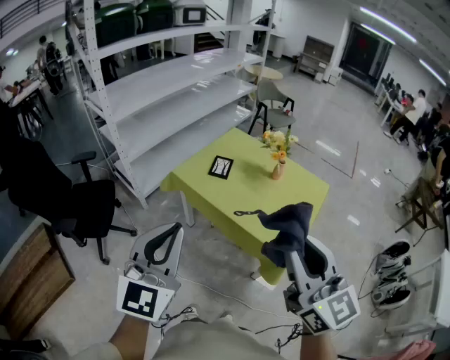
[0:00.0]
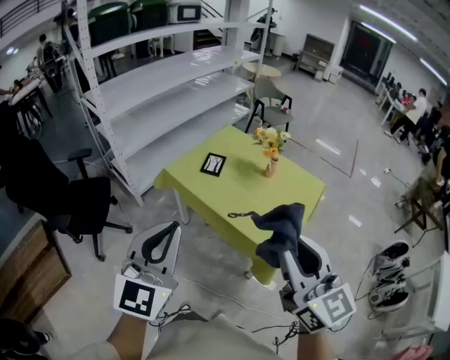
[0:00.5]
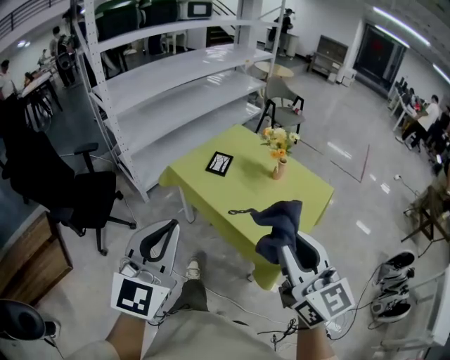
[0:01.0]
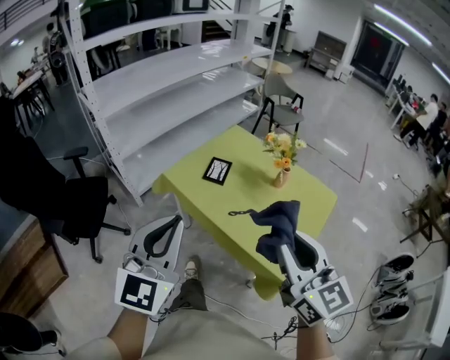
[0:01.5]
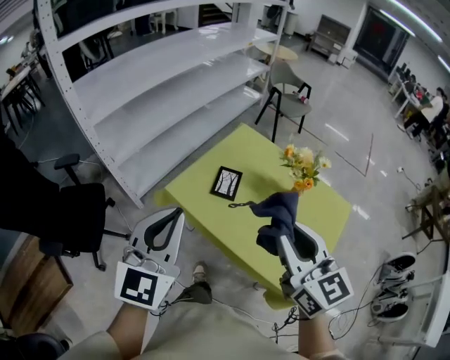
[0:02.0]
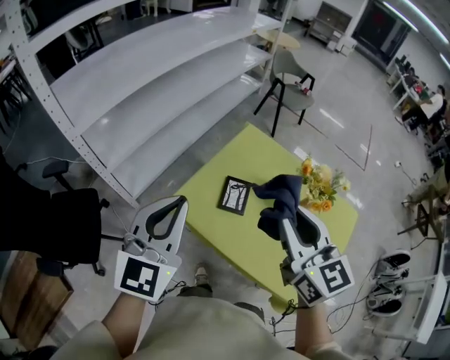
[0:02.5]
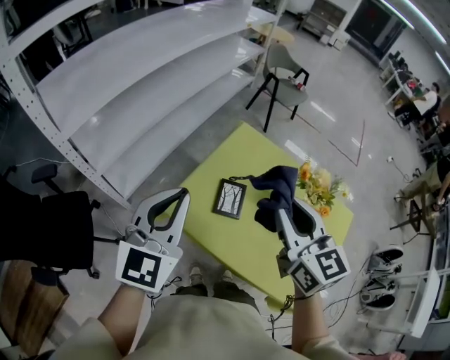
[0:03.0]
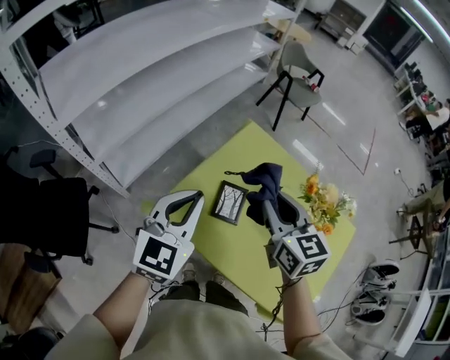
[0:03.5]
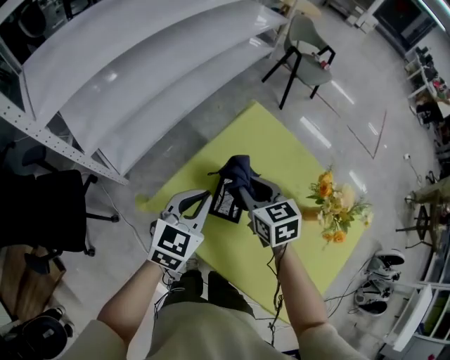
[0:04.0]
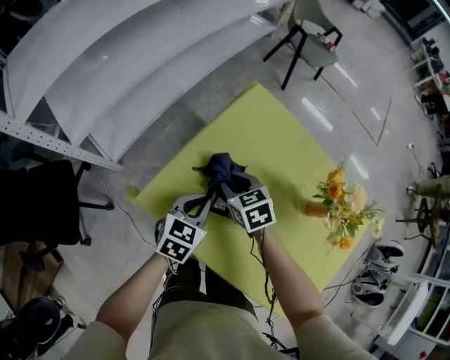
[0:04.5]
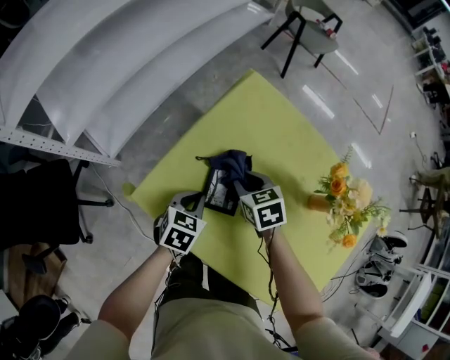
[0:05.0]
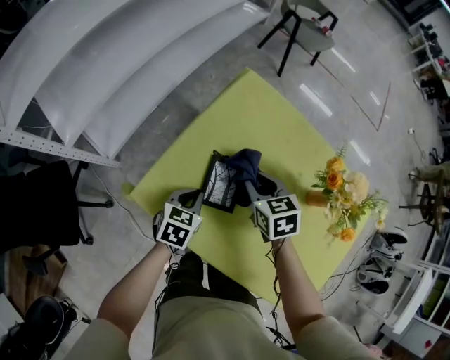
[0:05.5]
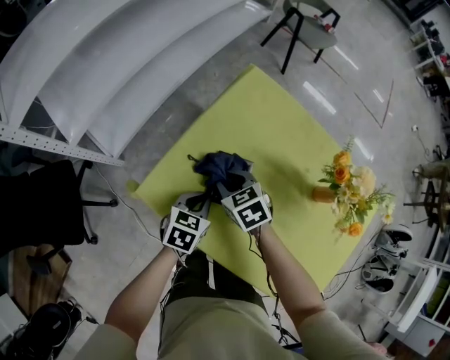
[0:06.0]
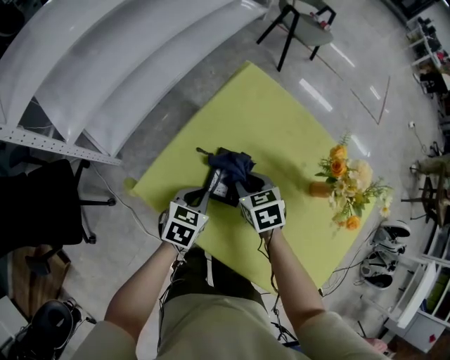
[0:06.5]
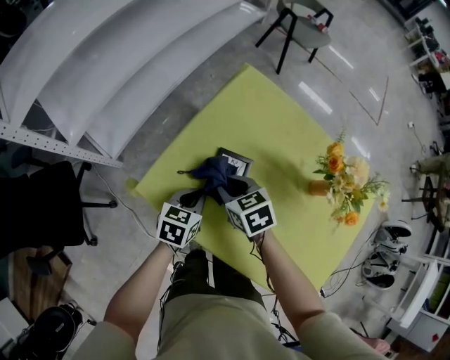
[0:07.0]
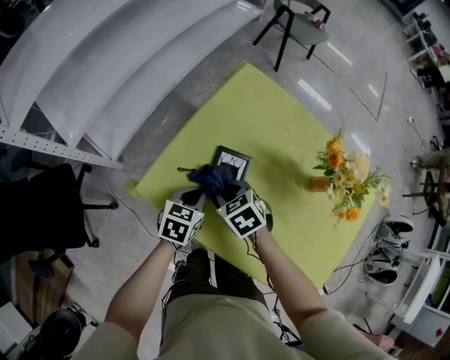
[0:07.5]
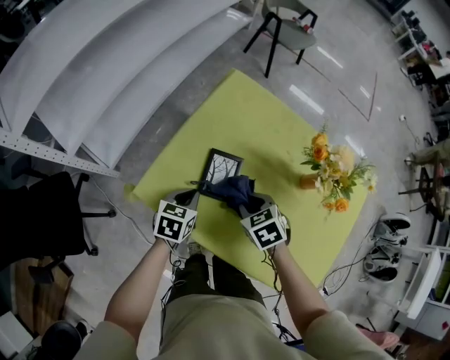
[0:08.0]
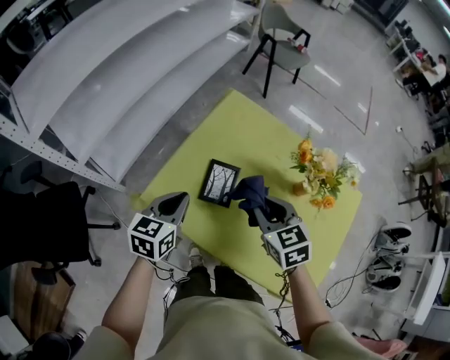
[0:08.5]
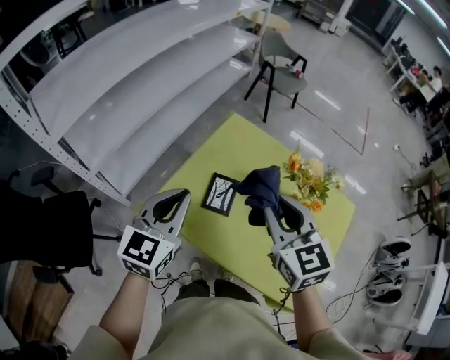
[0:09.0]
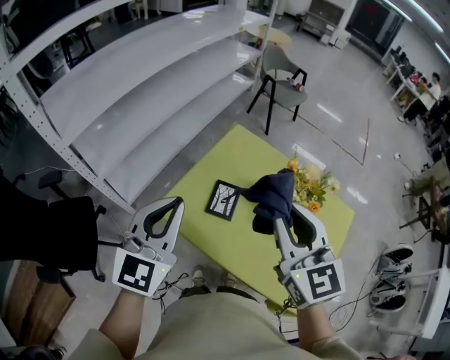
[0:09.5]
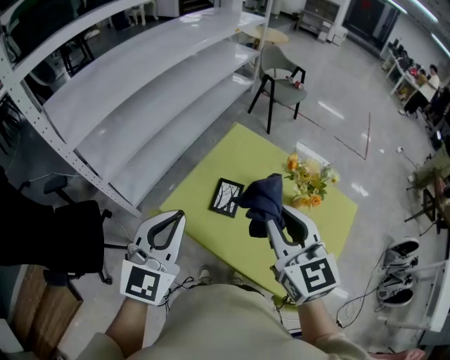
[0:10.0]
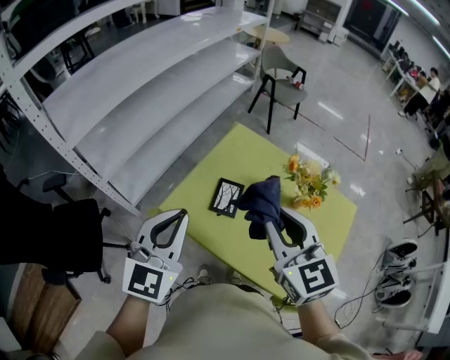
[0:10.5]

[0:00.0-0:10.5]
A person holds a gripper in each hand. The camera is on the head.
0:00.0 to 0:02.0: The grippers both shift forward by some 30 cm.
0:02.0 to 0:04.0: Both grippers travel together forward and downward, roughly 40 cm. The left gripper changes its angle by some 30 degrees. The right gripper tips its fingers downward by roughly 30 degrees.
0:04.0 to 0:06.5: The left gripper is displaced downward by some 20 cm, and swivels some 30 degrees. The right gripper moves up and down over some 15 cm, changing direction 2 times.
0:06.5 to 0:08.5: The right gripper goes approximately 20 cm upward and backward, while the left gripper is displaced upward by about 15 cm.
0:08.5 to 0:10.5: Both grippers travel together upward and backward, approximately 25 cm. The right gripper rotates roughly 30 degrees; the left gripper turns by some 40 degrees.

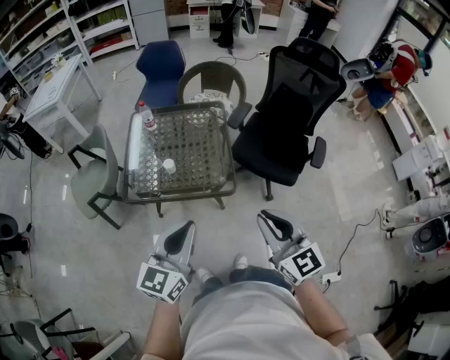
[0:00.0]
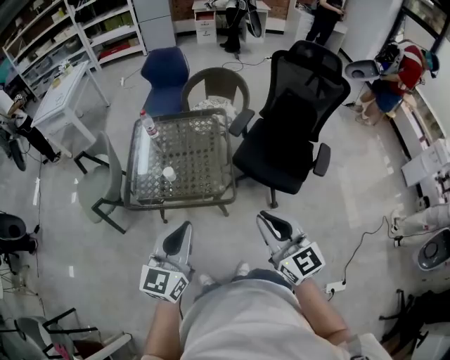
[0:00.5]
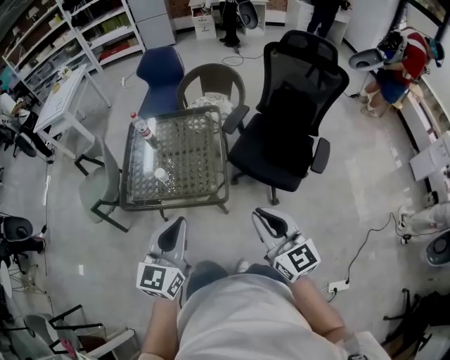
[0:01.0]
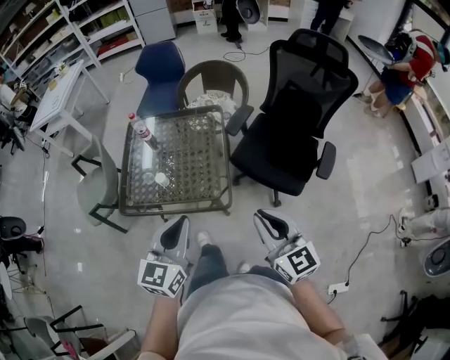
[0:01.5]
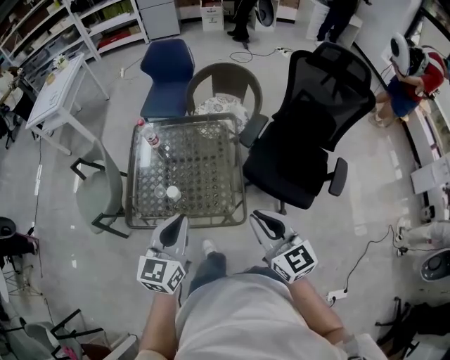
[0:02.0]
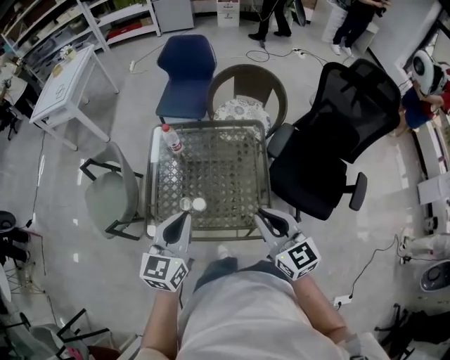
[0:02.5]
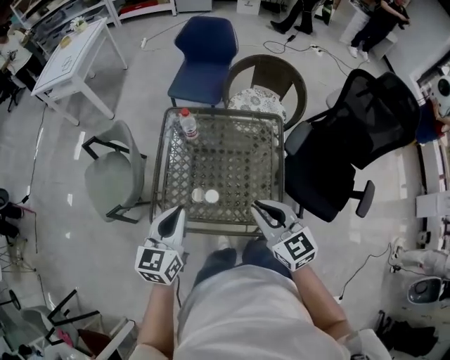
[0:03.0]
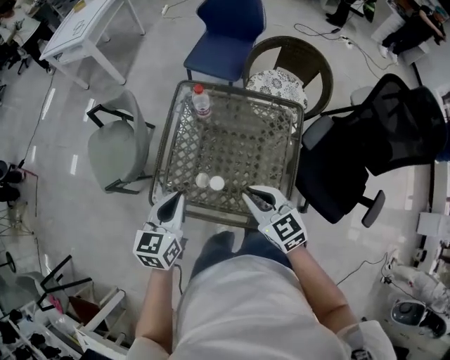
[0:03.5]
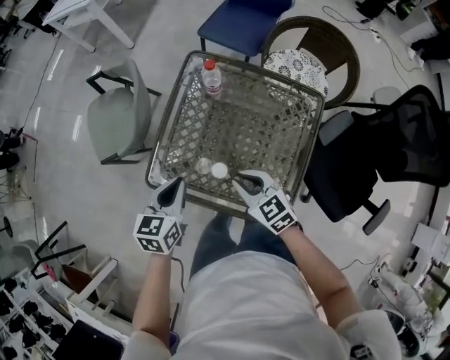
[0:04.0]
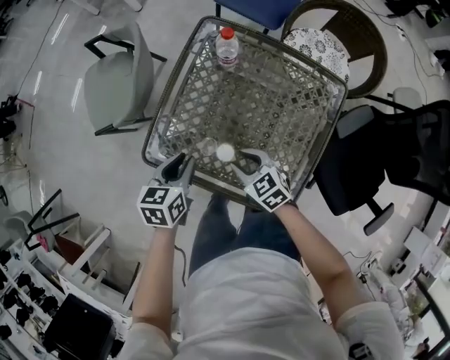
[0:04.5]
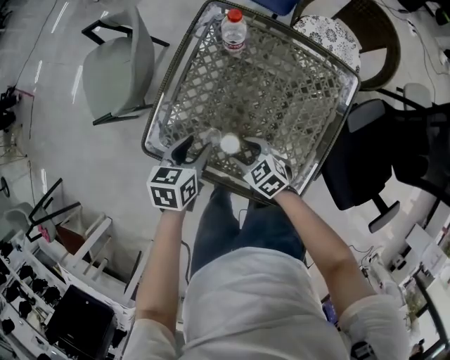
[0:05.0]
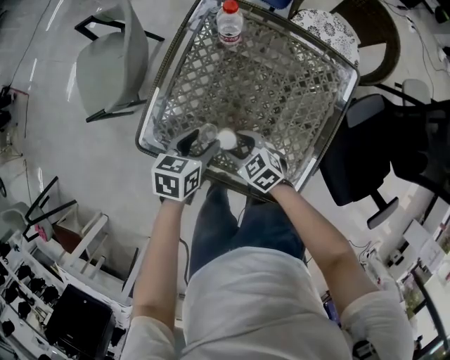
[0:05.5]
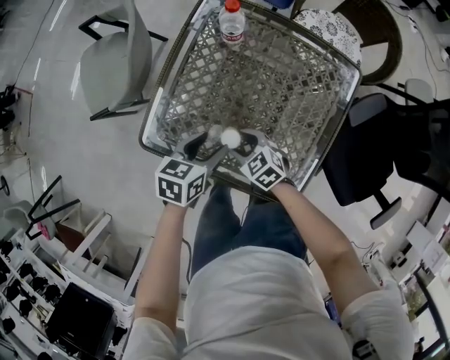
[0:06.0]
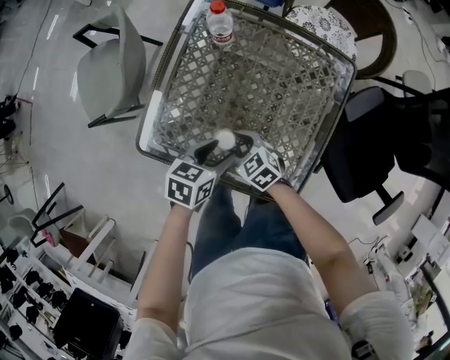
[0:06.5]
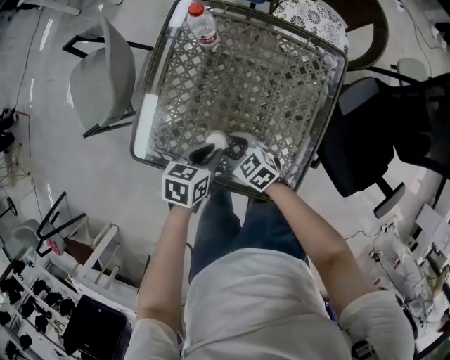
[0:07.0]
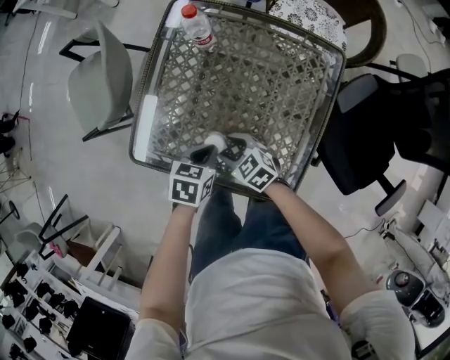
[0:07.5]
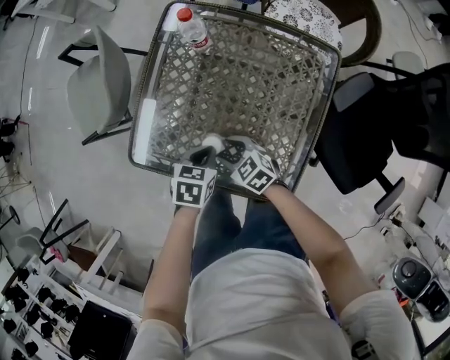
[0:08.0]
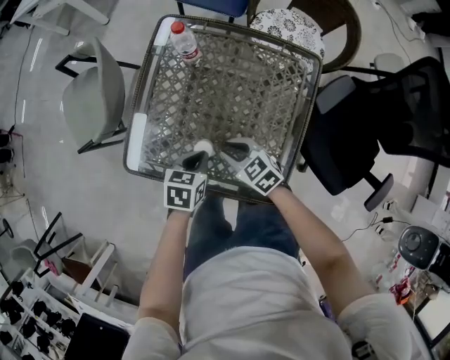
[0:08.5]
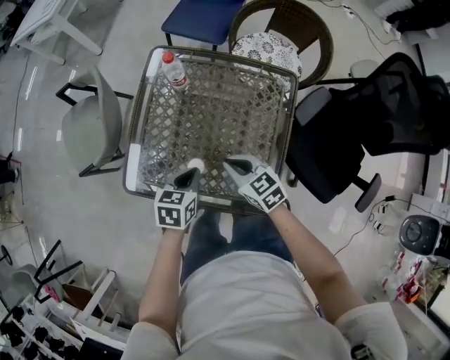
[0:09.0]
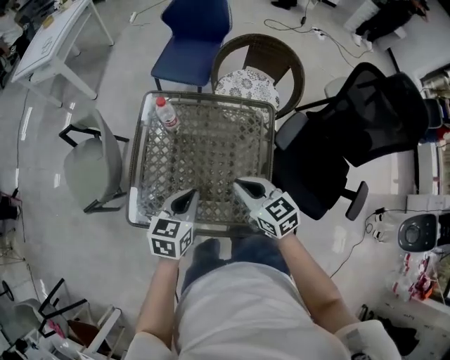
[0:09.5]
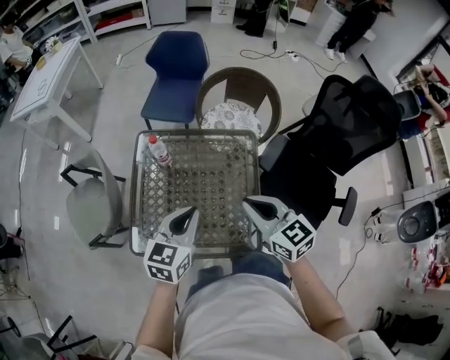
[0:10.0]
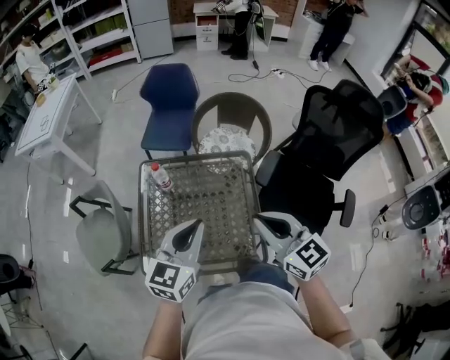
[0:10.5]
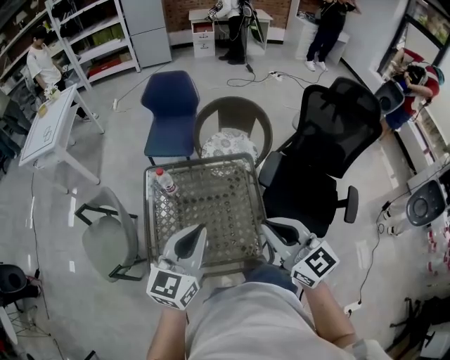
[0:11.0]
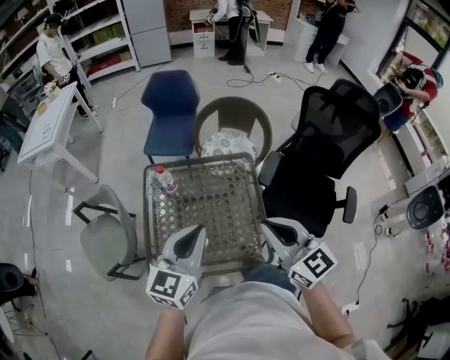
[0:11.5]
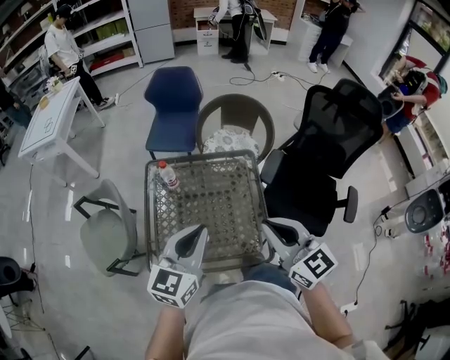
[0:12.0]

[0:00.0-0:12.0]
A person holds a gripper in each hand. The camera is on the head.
0:00.0 to 0:02.0: The two grippers go roughly 20 cm forward.
0:02.0 to 0:04.0: The left gripper changes place by about 30 cm, and swivels roughly 30 degrees. The right gripper ends up approximately 40 cm from where it was, and changes its angle by about 50 degrees.
0:04.0 to 0:06.0: The left gripper goes roughly 15 cm downward and to the right, and opens. The right gripper travels downward by about 20 cm, and opens.
0:06.0 to 0:08.0: The left gripper shifts by approximately 5 cm, and closes up.
0:08.0 to 0:10.0: The right gripper goes approximately 40 cm upward and to the right, rotates about 50 degrees, and closes. The left gripper goes about 30 cm upward, and tips its fingers upward by roughly 40 degrees.
0:10.0 to 0:12.0: The two grippers go some 15 cm upward and backward.

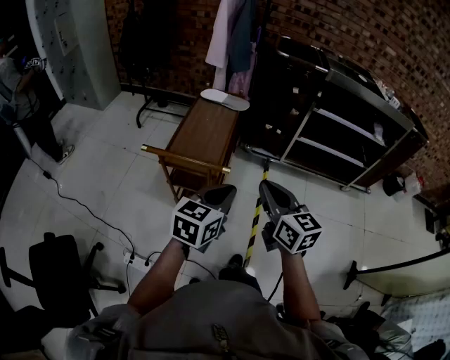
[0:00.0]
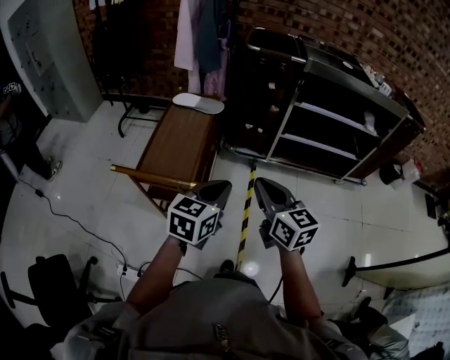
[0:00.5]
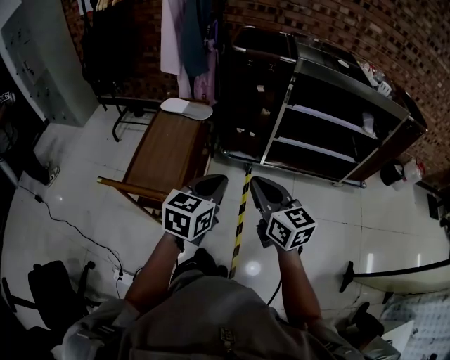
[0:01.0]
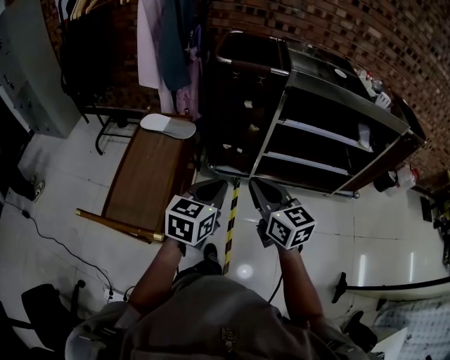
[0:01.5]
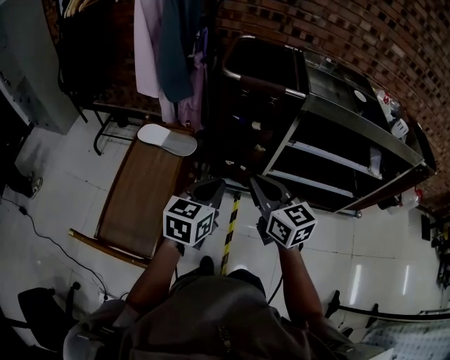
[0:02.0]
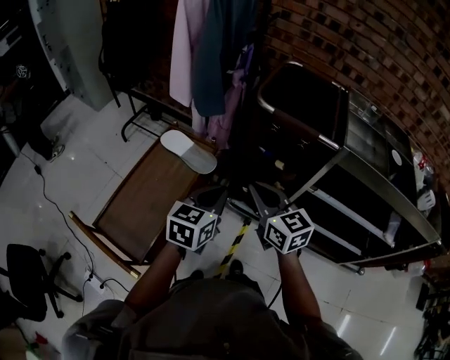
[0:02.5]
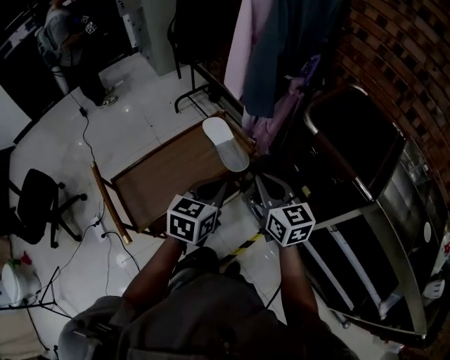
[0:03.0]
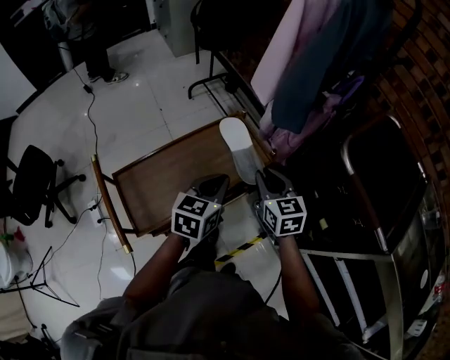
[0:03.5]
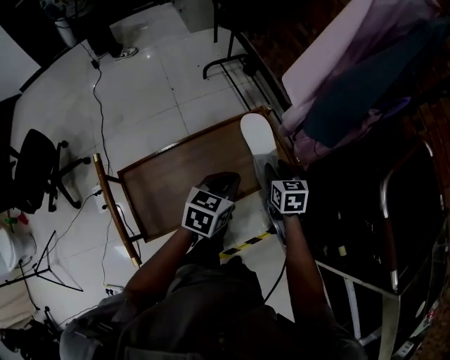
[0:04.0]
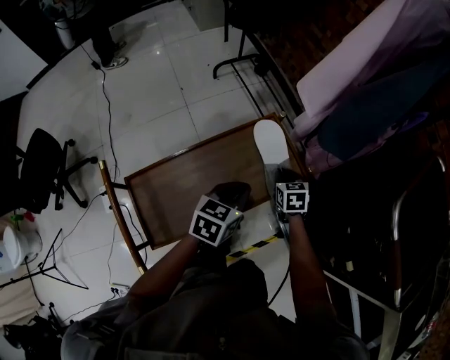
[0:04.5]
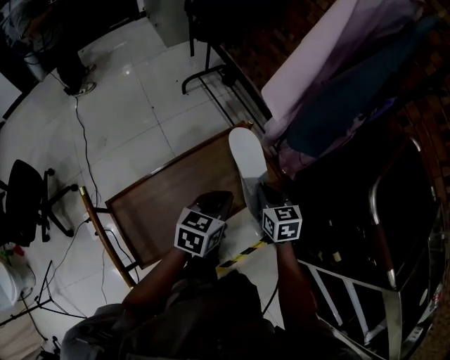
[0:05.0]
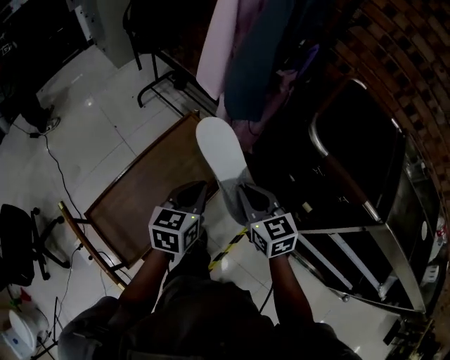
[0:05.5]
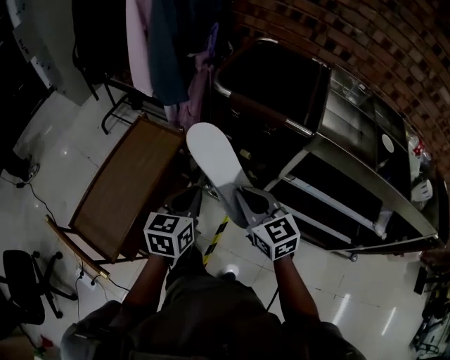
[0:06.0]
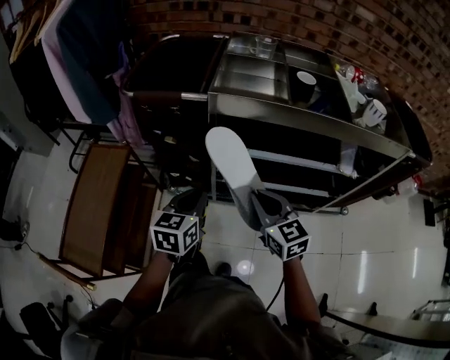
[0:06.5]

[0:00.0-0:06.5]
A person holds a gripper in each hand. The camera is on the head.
0:00.0 to 0:02.0: Both grippers are carried forward and to the right, approximately 50 cm.
0:02.0 to 0:04.5: The left gripper ends up about 35 cm from where it was, and turns by about 50 degrees, while the right gripper changes place by approximately 50 cm, points its fingers approximately 40 degrees further downward, and opens and closes again.
0:04.5 to 0:06.5: The pair of grippers is taken about 60 cm. The right gripper angles its fingers upward, by approximately 30 degrees. Meanwhile the left gripper rotates roughly 40 degrees.
